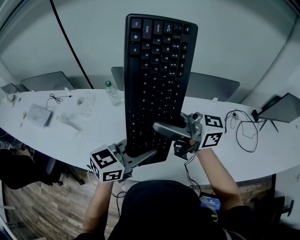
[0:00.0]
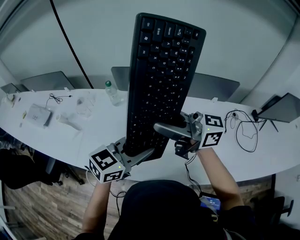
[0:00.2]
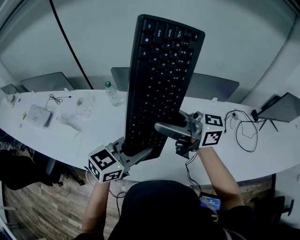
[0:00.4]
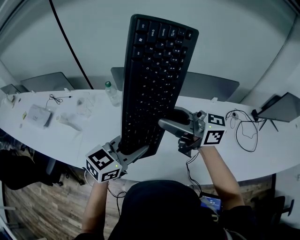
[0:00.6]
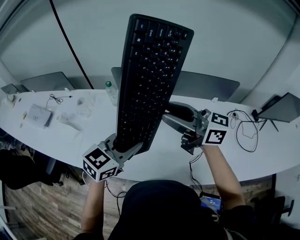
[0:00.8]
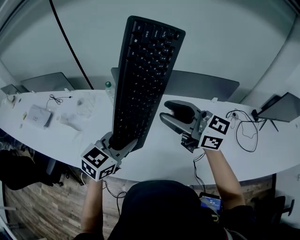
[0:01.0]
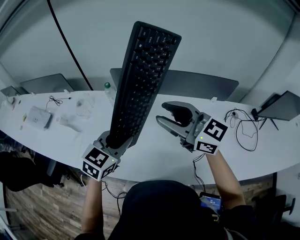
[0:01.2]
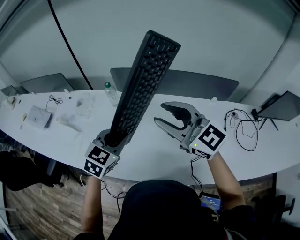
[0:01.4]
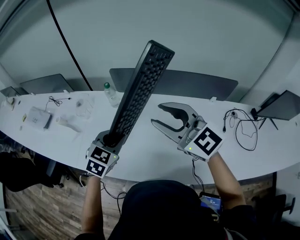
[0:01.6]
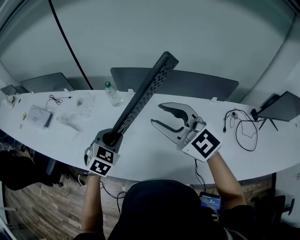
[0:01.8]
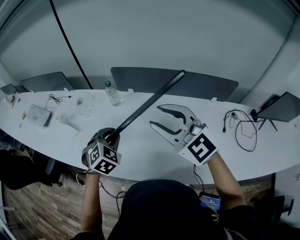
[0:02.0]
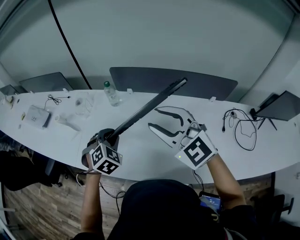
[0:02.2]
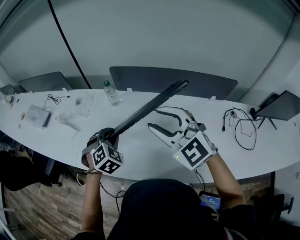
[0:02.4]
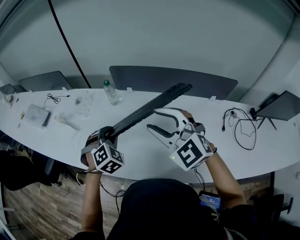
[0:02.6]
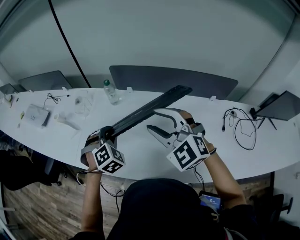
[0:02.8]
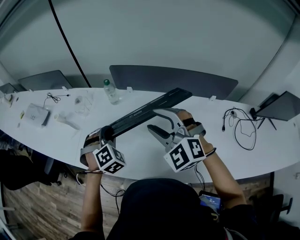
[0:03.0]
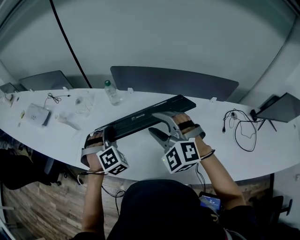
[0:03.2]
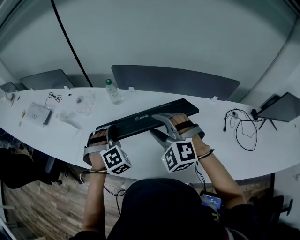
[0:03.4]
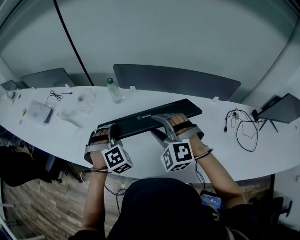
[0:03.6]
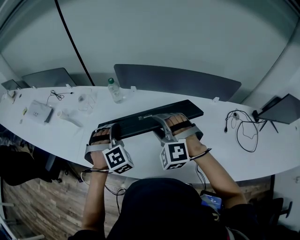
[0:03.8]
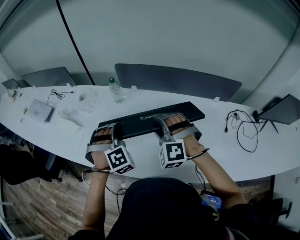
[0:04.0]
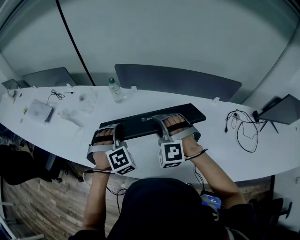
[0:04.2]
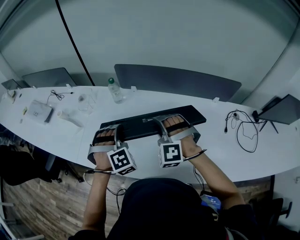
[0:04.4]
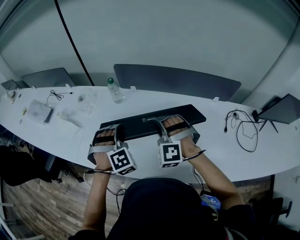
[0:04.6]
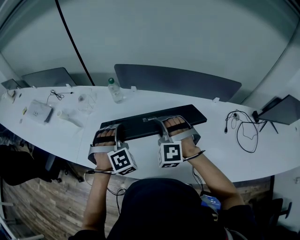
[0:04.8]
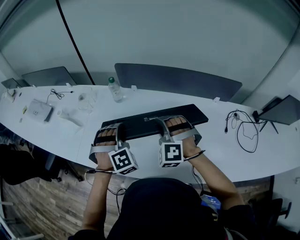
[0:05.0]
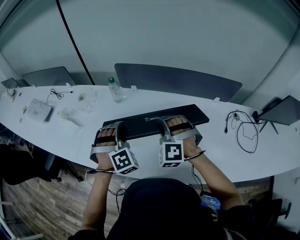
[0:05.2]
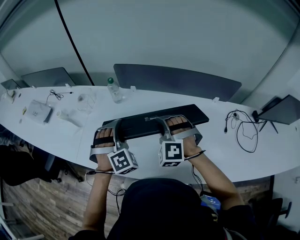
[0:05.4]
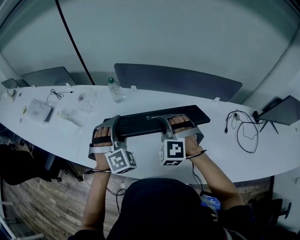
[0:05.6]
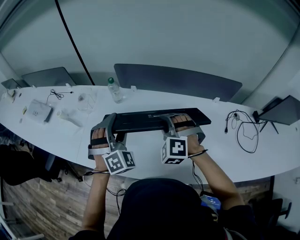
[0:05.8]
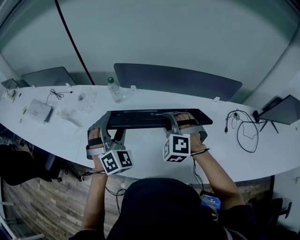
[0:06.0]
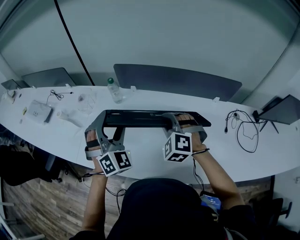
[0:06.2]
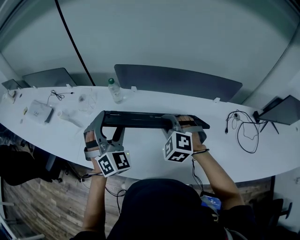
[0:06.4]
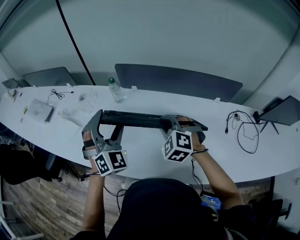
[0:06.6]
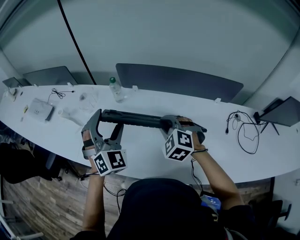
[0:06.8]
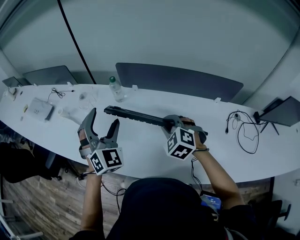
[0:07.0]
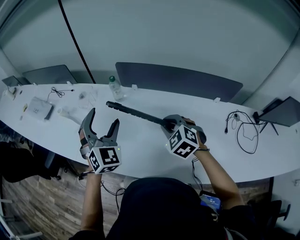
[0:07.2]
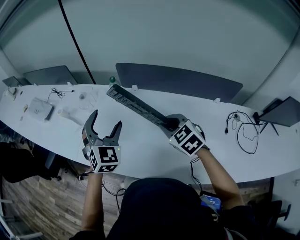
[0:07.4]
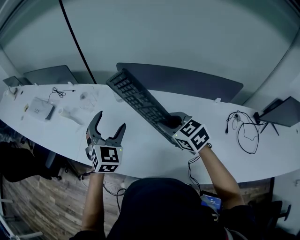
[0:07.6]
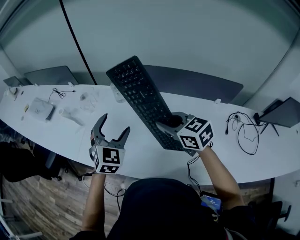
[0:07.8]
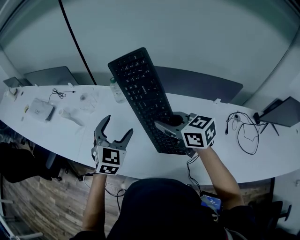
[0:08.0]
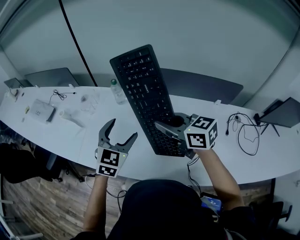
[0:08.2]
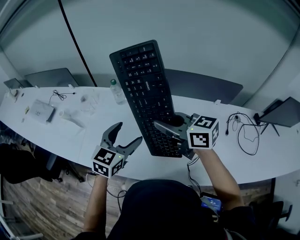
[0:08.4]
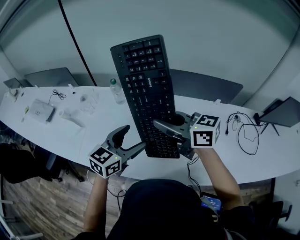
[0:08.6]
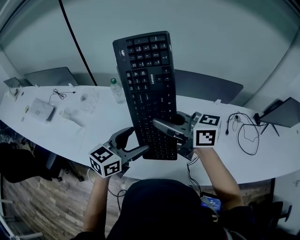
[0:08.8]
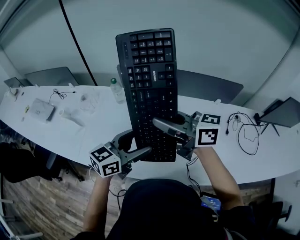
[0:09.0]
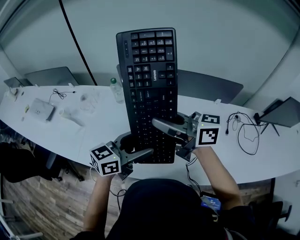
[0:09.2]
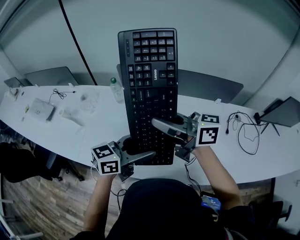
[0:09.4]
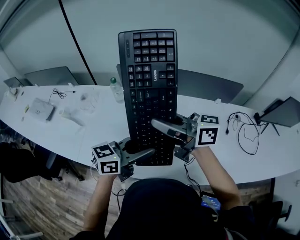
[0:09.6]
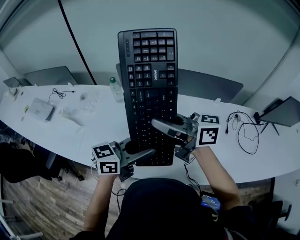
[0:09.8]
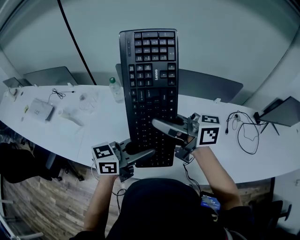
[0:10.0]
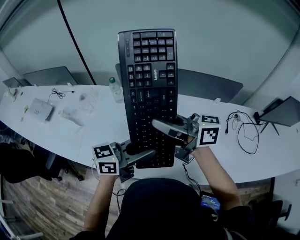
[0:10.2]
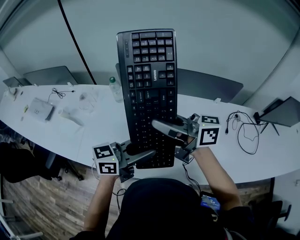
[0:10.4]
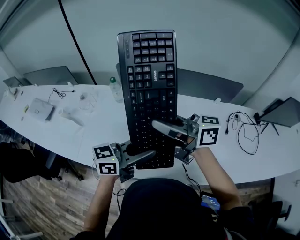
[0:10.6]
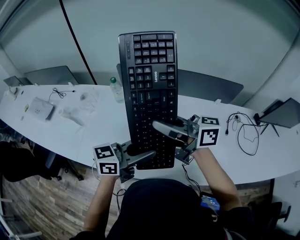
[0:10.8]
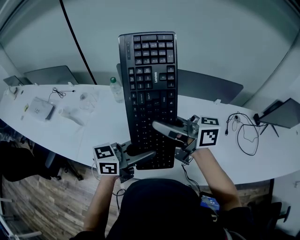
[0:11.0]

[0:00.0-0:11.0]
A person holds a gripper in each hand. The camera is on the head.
0:00.0 to 0:01.6: The left gripper changes place by approximately 15 cm, and swivels roughly 40 degrees. The right gripper turns by approximately 50 degrees.
0:01.6 to 0:03.2: The right gripper shifts approximately 10 cm downward, and swivels approximately 50 degrees. Meanwhile the left gripper moves about 5 cm, and swivels approximately 50 degrees.
0:03.2 to 0:04.8: The right gripper shifts approximately 10 cm downward, rotates some 20 degrees, and closes up.
0:04.8 to 0:06.2: The left gripper travels upward by some 10 cm, turns by roughly 30 degrees, and opens up.
0:06.2 to 0:07.8: The right gripper heads upward, covering some 5 cm, and rotates around the line of its fingers by some 50 degrees, clockwise from behind. Meanwhile the left gripper rotates about 30 degrees.
0:07.8 to 0:09.4: The right gripper heads upward, covering about 10 cm, and tips its fingers upward by approximately 40 degrees, while the left gripper moves about 15 cm, and rotates approximately 70 degrees.
0:09.4 to 0:11.0: The left gripper closes its fingers.

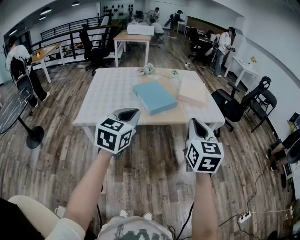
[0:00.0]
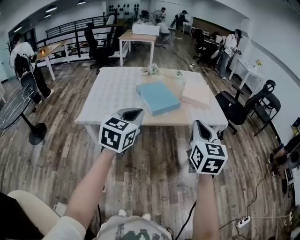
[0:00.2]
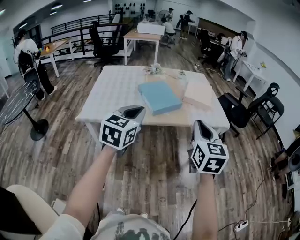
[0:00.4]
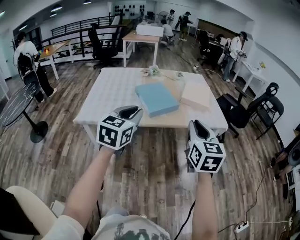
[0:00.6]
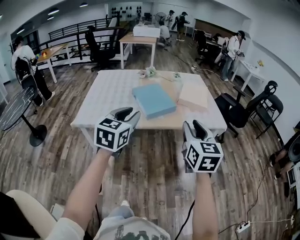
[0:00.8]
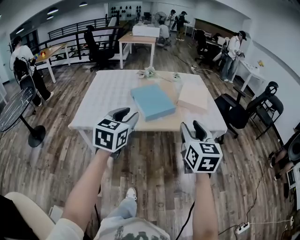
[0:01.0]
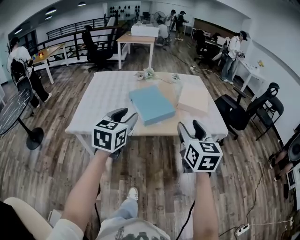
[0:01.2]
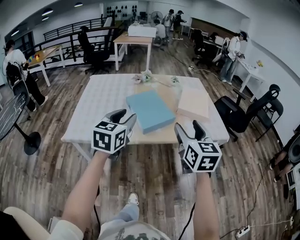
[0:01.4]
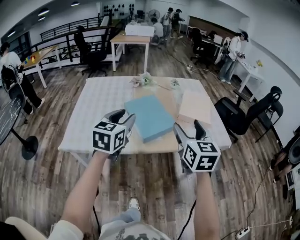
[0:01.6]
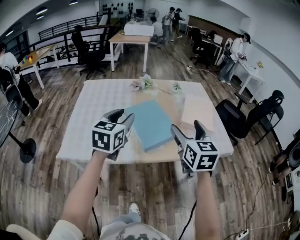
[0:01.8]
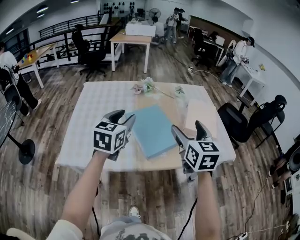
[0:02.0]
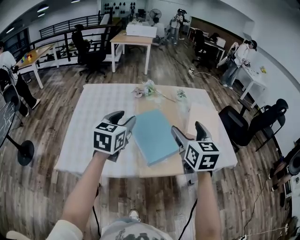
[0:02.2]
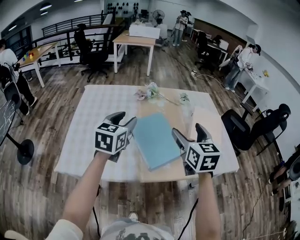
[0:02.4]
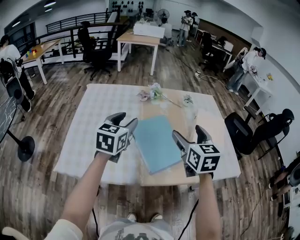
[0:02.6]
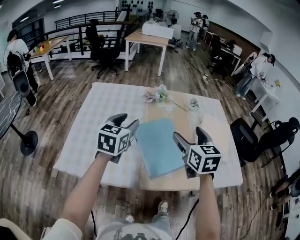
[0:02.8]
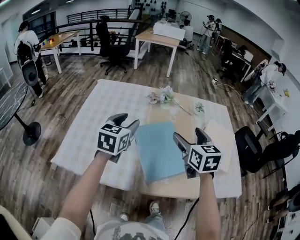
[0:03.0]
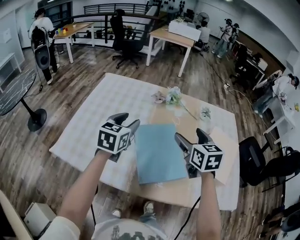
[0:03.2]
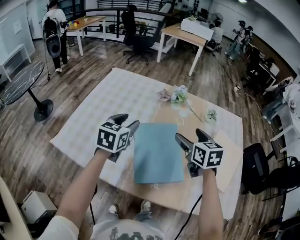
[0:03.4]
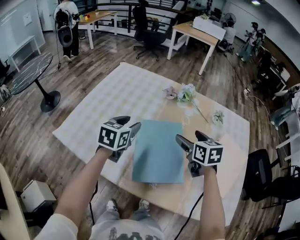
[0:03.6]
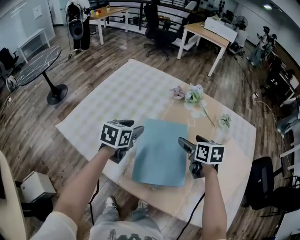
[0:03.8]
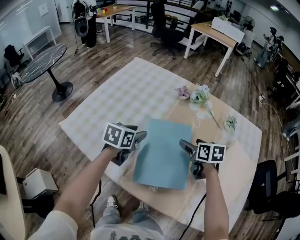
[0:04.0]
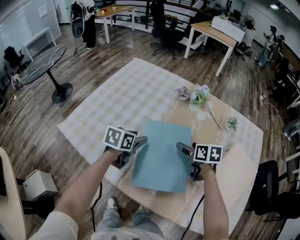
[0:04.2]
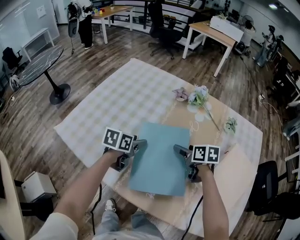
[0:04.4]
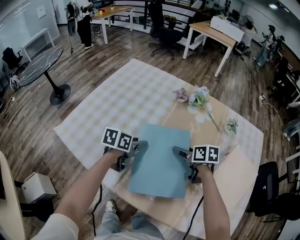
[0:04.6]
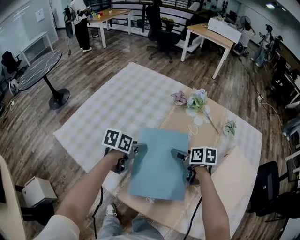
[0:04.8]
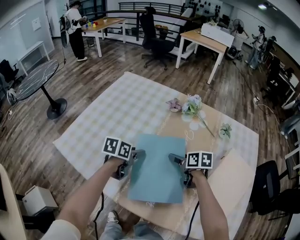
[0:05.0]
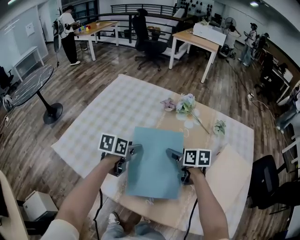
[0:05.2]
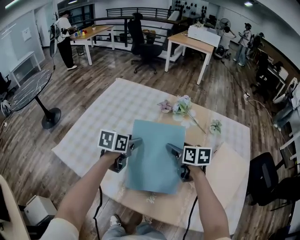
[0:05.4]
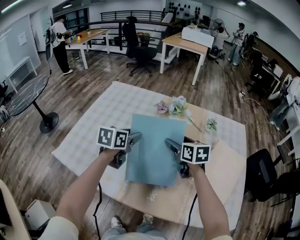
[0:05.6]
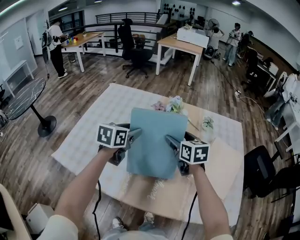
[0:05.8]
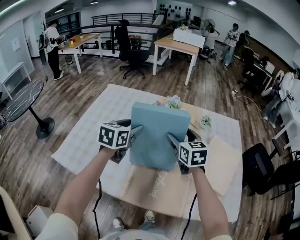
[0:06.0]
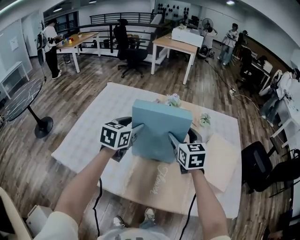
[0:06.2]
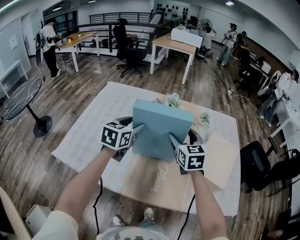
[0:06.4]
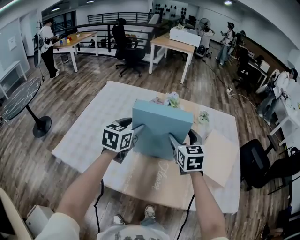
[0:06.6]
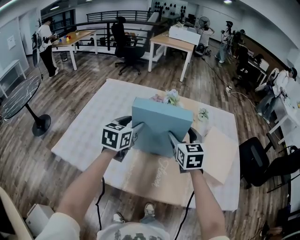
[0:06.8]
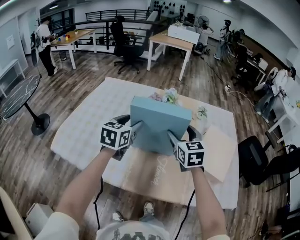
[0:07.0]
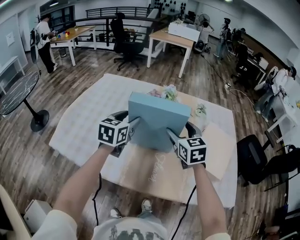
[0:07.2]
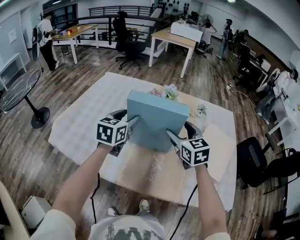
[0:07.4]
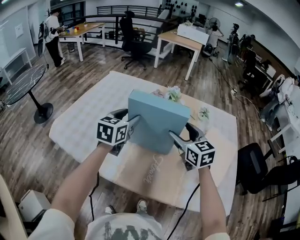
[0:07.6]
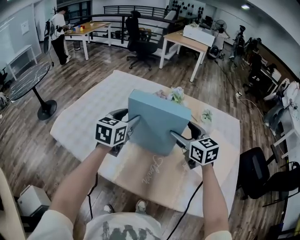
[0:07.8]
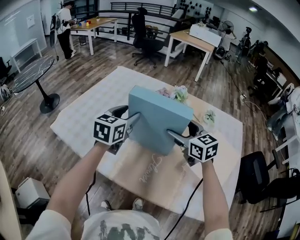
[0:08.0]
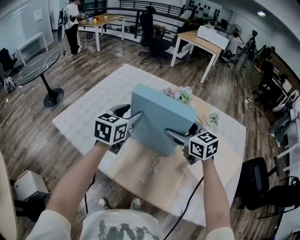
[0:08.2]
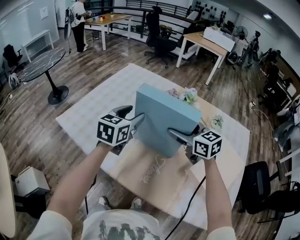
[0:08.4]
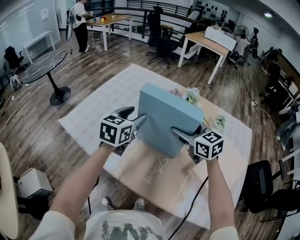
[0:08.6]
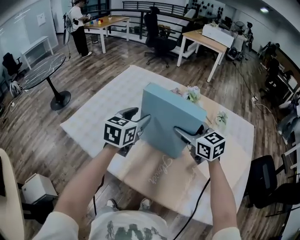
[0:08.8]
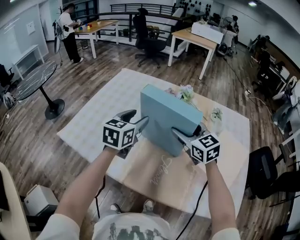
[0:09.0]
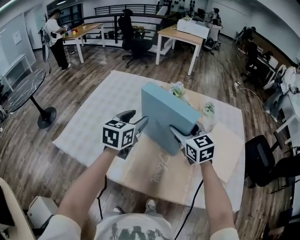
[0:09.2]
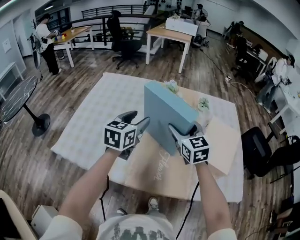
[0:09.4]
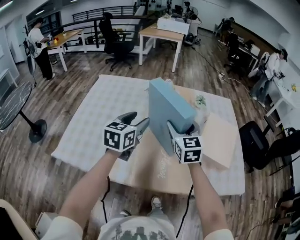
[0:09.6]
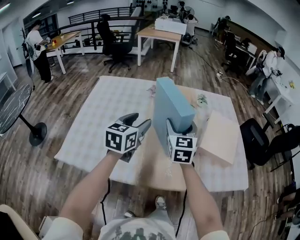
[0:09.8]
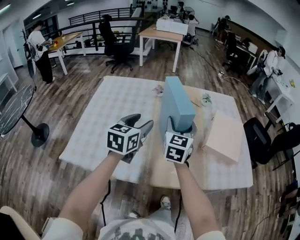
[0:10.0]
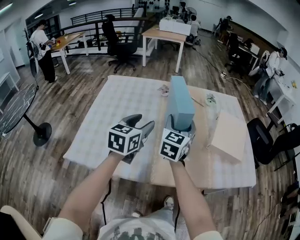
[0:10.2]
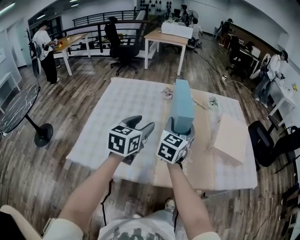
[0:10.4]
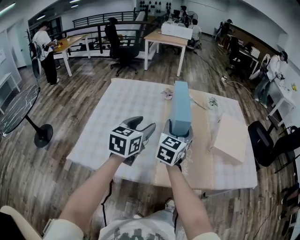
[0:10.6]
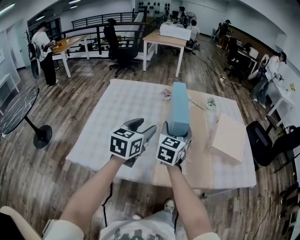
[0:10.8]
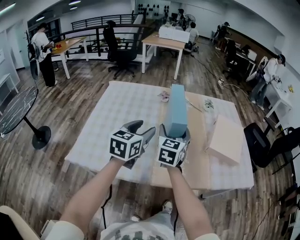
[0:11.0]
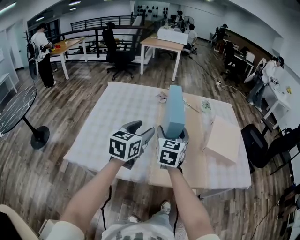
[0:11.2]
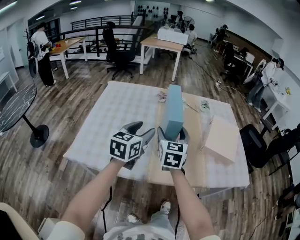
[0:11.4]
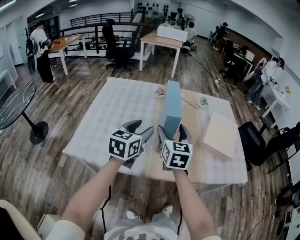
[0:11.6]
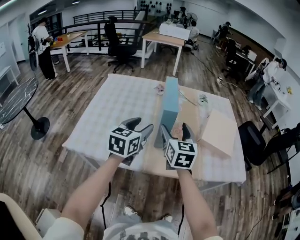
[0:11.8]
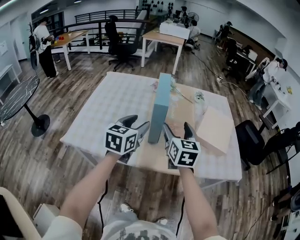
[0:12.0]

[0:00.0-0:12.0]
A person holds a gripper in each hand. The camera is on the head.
0:00.0 to 0:01.6: The two grippers go roughly 25 cm forward. The right gripper opens; the left gripper opens up.
0:01.6 to 0:03.0: Both grippers move forward, about 25 cm. The right gripper changes its angle by some 20 degrees.
0:03.0 to 0:04.4: The left gripper goes some 20 cm downward, and swivels approximately 40 degrees. The right gripper travels downward and forward by approximately 25 cm, and turns by approximately 50 degrees.
0:04.4 to 0:06.0: The grippers both shift upward by some 20 cm. The right gripper turns by about 40 degrees. The left gripper rotates some 30 degrees.
0:06.0 to 0:07.6: The right gripper moves backward, some 5 cm.
0:09.0 to 0:10.4: The left gripper moves approximately 10 cm; the right gripper moves approximately 10 cm, and swivels some 70 degrees.
0:10.4 to 0:12.0: The grippers both shift to the right and backward by roughly 10 cm. The right gripper turns by approximately 30 degrees.

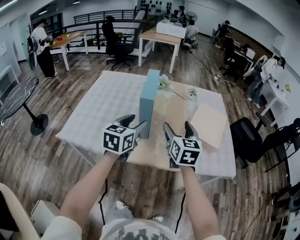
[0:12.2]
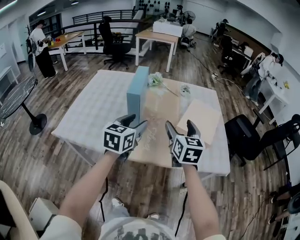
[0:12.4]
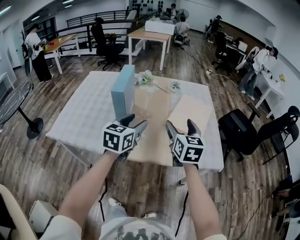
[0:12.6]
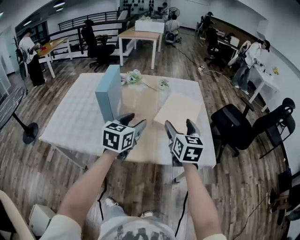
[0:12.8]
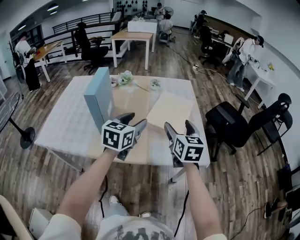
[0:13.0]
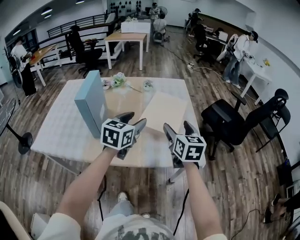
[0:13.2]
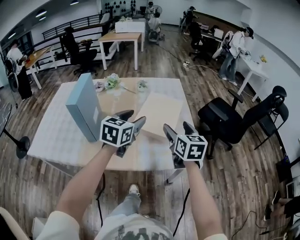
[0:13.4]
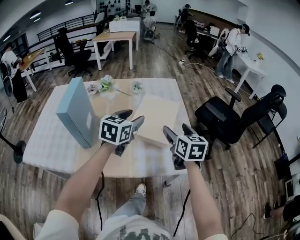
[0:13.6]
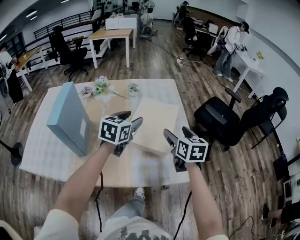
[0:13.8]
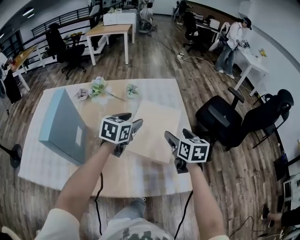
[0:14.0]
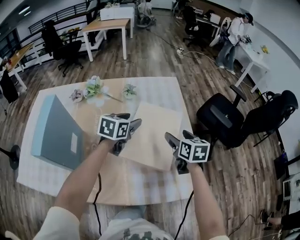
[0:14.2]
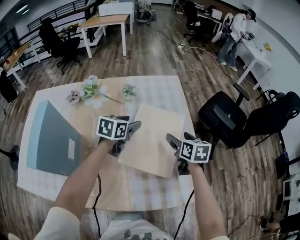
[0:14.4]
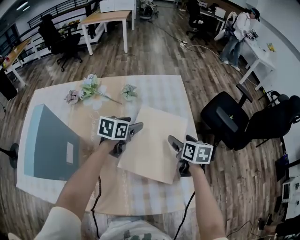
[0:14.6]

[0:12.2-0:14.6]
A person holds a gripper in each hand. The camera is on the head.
0:12.2 to 0:13.4: Both grippers travel together to the right, some 30 cm.
0:13.4 to 0:14.6: Both grippers travel together forward and downward, roughly 30 cm. The right gripper swivels roughly 30 degrees, while the left gripper rotates roughly 30 degrees.
